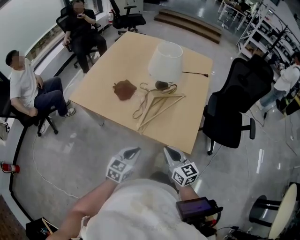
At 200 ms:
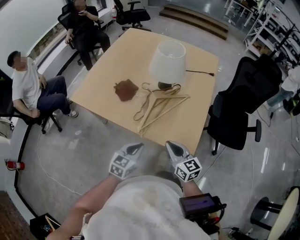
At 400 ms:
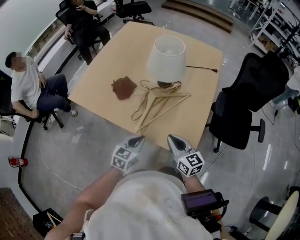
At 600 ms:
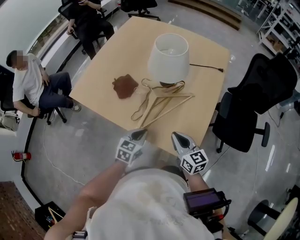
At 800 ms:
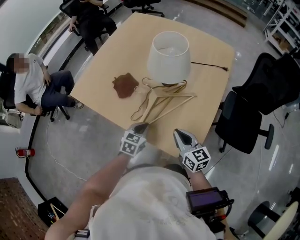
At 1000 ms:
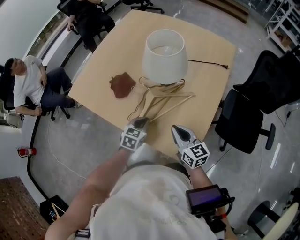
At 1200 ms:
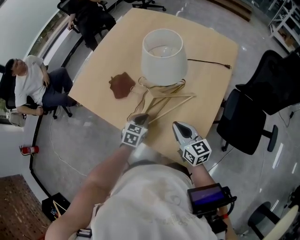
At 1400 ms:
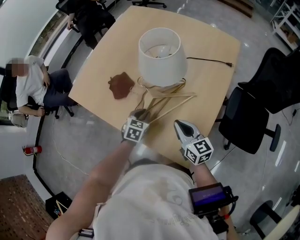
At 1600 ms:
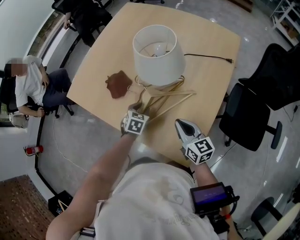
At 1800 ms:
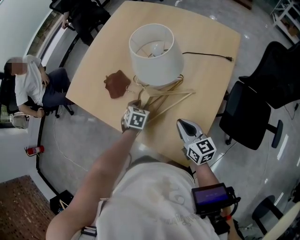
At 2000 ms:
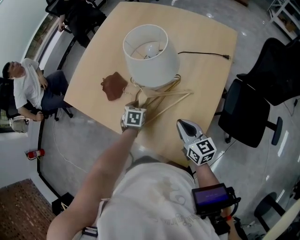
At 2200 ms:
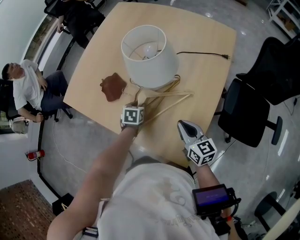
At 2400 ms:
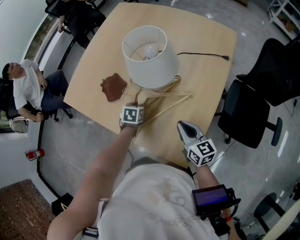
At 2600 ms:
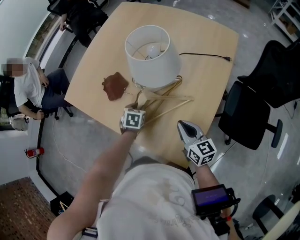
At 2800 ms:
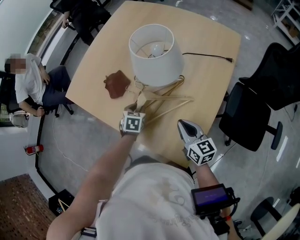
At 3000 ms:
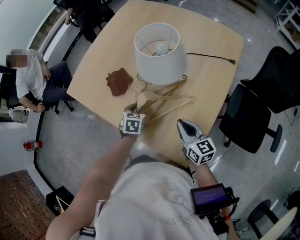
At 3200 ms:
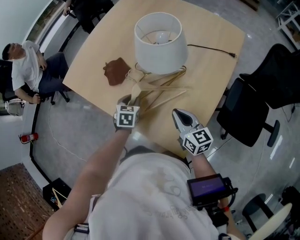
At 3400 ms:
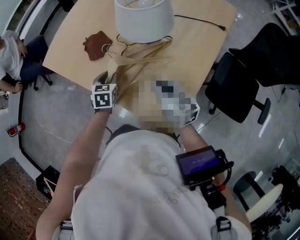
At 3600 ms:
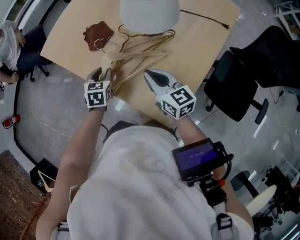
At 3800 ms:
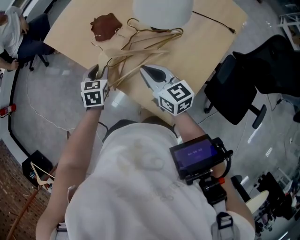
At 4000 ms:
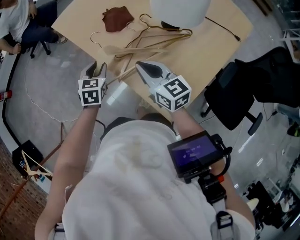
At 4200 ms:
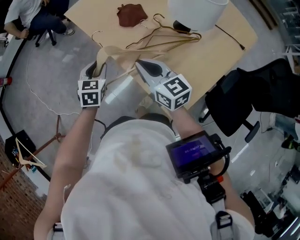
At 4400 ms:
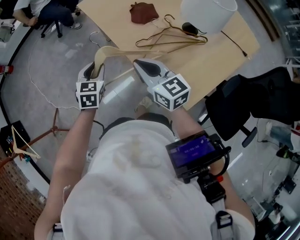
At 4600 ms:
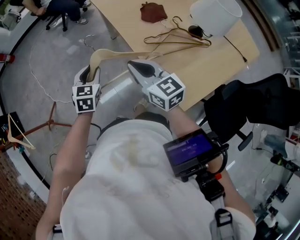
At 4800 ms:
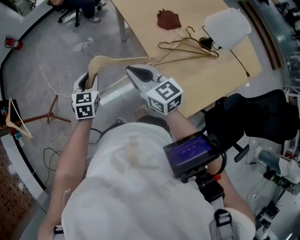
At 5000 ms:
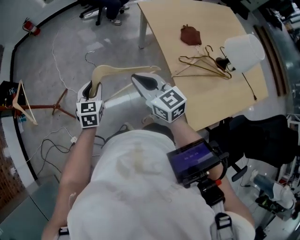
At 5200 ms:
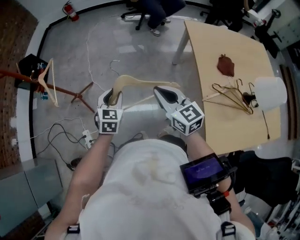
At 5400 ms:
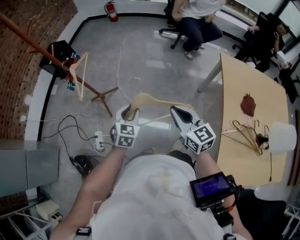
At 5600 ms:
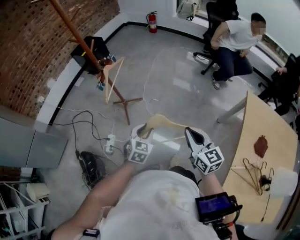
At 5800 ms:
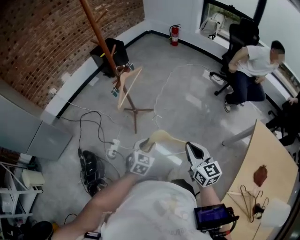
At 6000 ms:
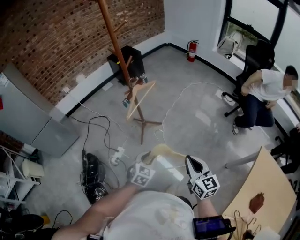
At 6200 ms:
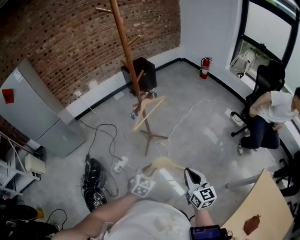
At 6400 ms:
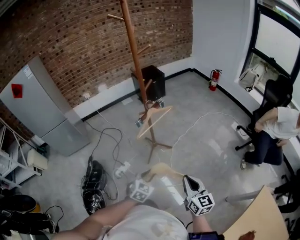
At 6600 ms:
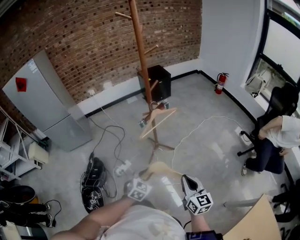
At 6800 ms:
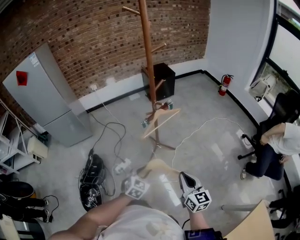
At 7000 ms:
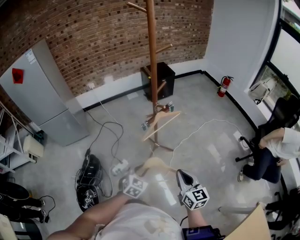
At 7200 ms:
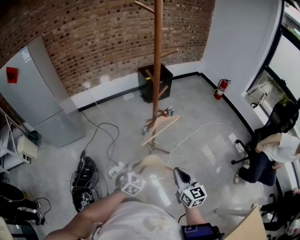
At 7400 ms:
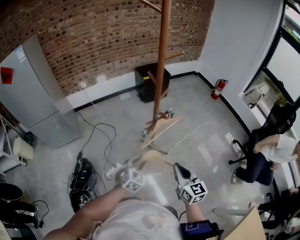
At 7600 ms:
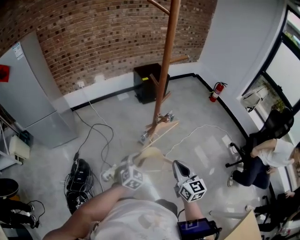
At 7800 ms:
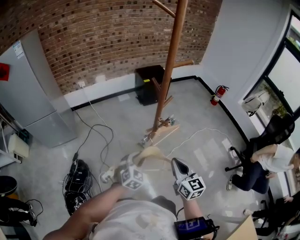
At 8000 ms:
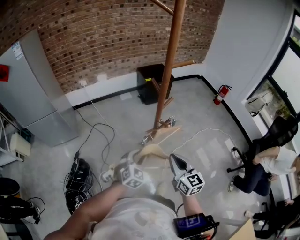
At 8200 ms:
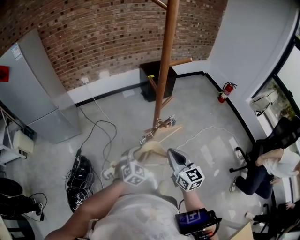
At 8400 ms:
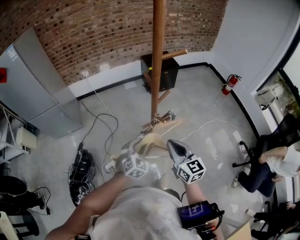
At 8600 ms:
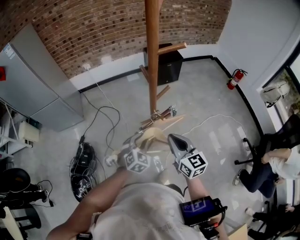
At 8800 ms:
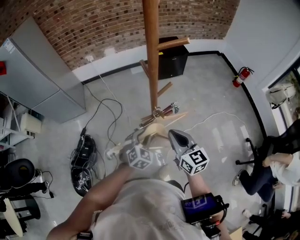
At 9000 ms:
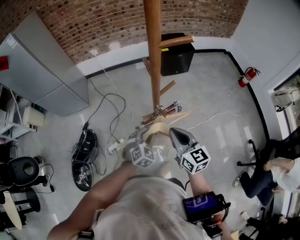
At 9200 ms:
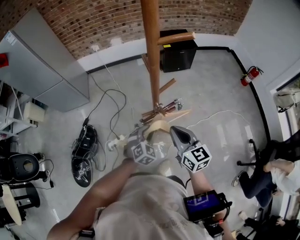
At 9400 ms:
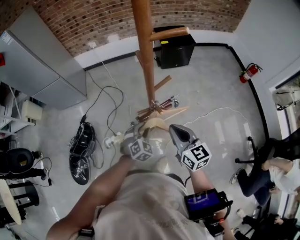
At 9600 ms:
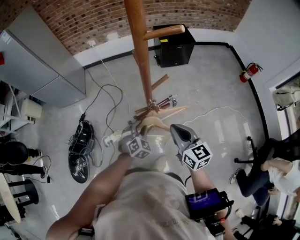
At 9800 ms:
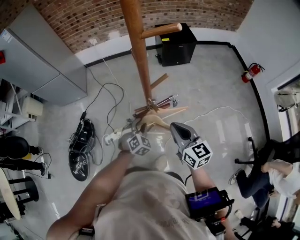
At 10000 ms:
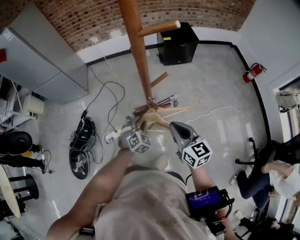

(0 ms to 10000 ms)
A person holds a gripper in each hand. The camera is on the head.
0 ms - 1400 ms: The left gripper shifts roughly 25 cm forward, and swivels some 30 degrees. Meanwhile the right gripper moves forward and to the right, roughly 25 cm.
2800 ms - 4200 ms: The right gripper shifts by some 25 cm, and swivels some 30 degrees. Meanwhile the left gripper changes place by some 25 cm, and swivels approximately 20 degrees.
4200 ms - 5800 ms: The two grippers travel together, about 50 cm. The right gripper changes its angle by roughly 60 degrees, while the left gripper rotates approximately 60 degrees.
5800 ms - 7200 ms: The left gripper ends up roughly 20 cm from where it was, and changes its angle by about 20 degrees; the right gripper ends up approximately 25 cm from where it was, and changes its angle by about 30 degrees.
7200 ms - 8600 ms: The two grippers go some 25 cm forward.
8600 ms - 10000 ms: The right gripper moves to the right, about 5 cm. Meanwhile the left gripper is displaced downward by about 10 cm.

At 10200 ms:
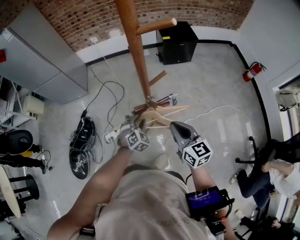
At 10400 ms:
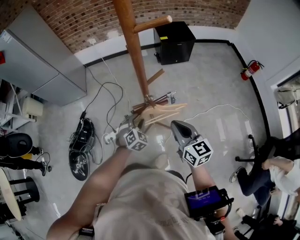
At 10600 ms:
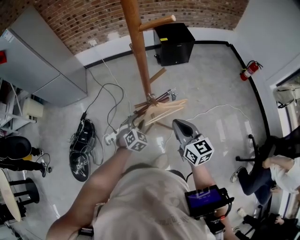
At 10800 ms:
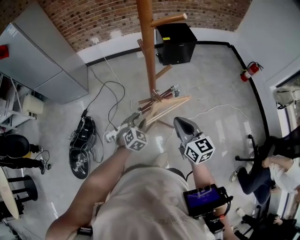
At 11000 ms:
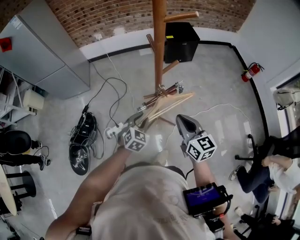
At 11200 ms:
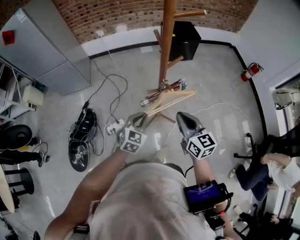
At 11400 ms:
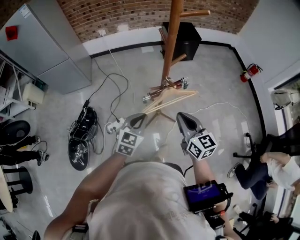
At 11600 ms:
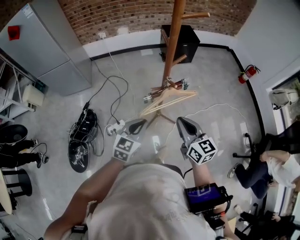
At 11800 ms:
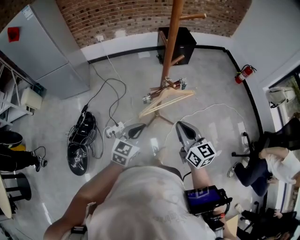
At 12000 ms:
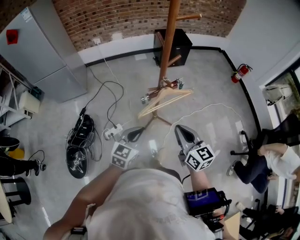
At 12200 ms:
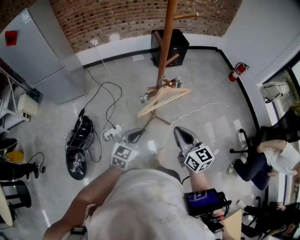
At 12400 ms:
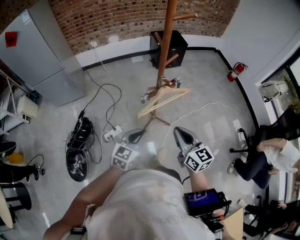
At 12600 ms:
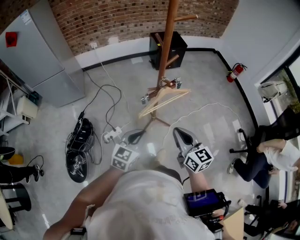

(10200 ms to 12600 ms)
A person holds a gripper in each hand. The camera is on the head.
10200 ms - 11400 ms: The left gripper heads upward, backward and to the left, covering about 20 cm, swivels about 40 degrees, and closes. Meanwhile the right gripper is displaced to the left and backward by some 10 cm.
11400 ms - 12600 ms: Both grippers travel together backward, roughly 10 cm.

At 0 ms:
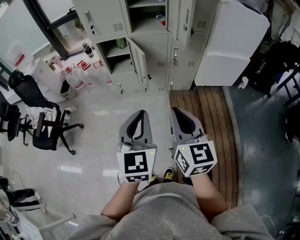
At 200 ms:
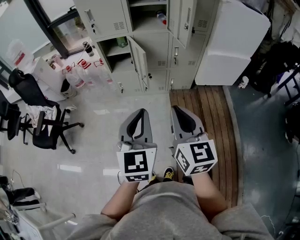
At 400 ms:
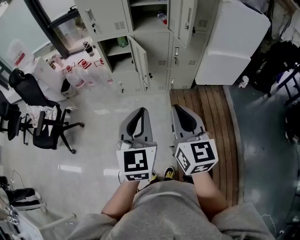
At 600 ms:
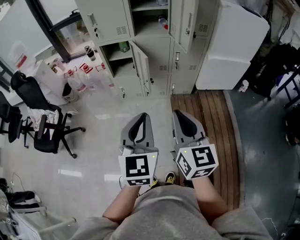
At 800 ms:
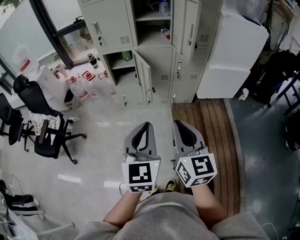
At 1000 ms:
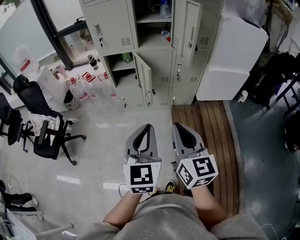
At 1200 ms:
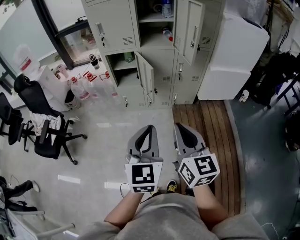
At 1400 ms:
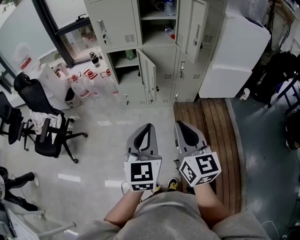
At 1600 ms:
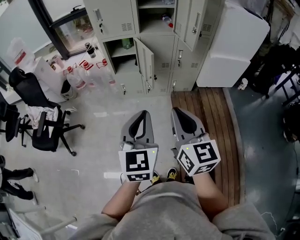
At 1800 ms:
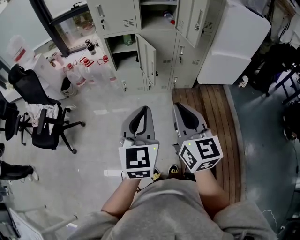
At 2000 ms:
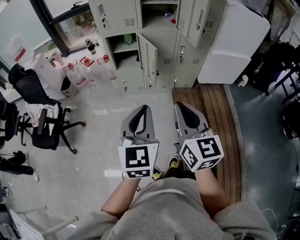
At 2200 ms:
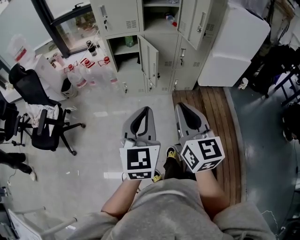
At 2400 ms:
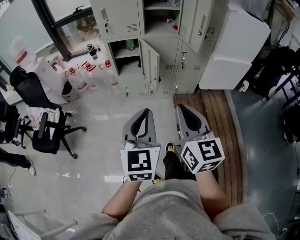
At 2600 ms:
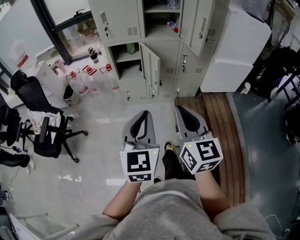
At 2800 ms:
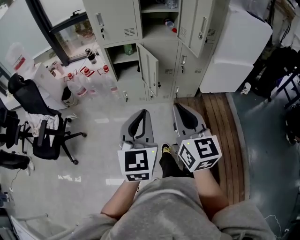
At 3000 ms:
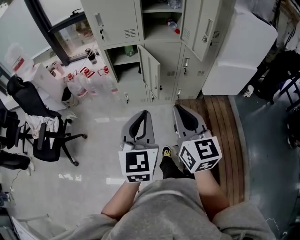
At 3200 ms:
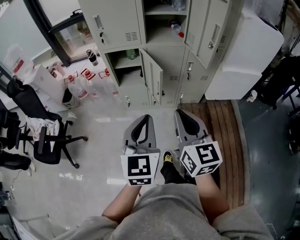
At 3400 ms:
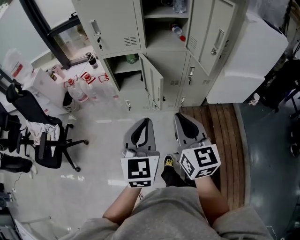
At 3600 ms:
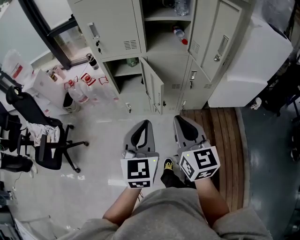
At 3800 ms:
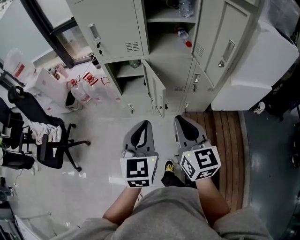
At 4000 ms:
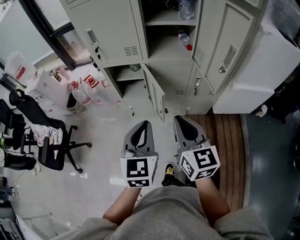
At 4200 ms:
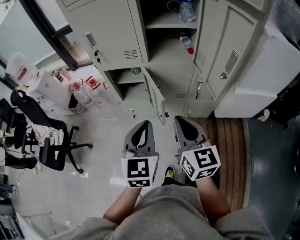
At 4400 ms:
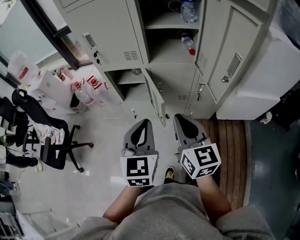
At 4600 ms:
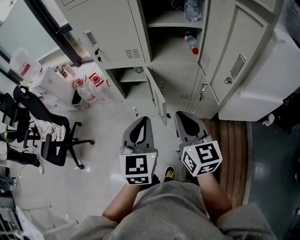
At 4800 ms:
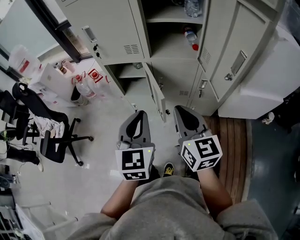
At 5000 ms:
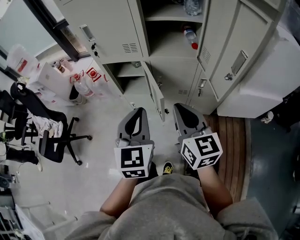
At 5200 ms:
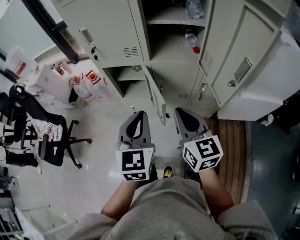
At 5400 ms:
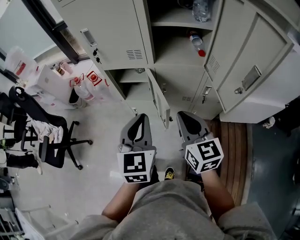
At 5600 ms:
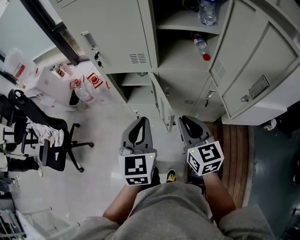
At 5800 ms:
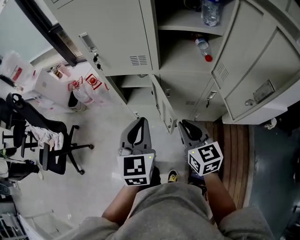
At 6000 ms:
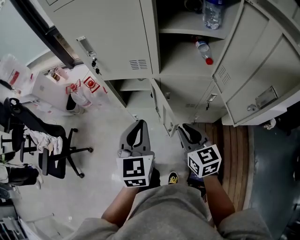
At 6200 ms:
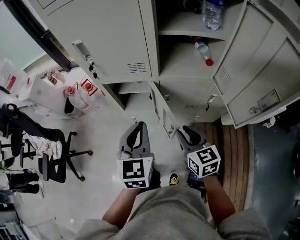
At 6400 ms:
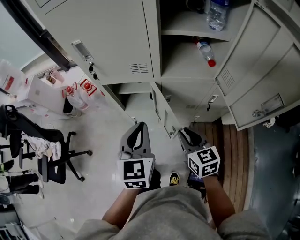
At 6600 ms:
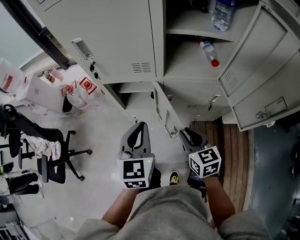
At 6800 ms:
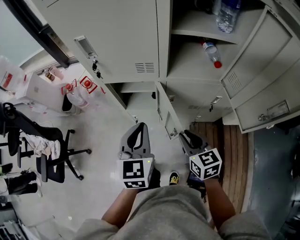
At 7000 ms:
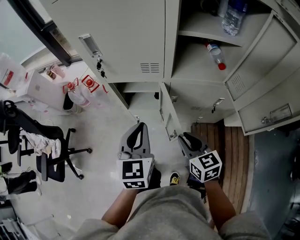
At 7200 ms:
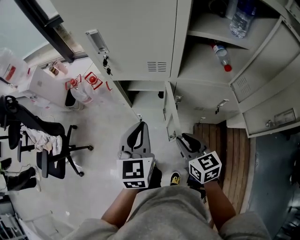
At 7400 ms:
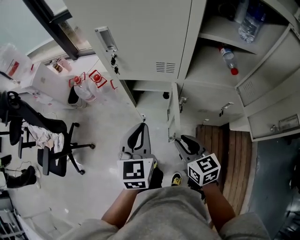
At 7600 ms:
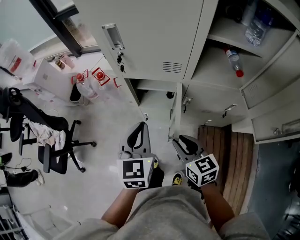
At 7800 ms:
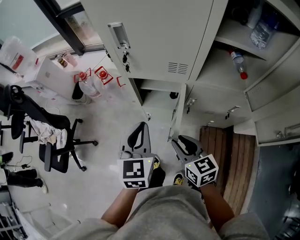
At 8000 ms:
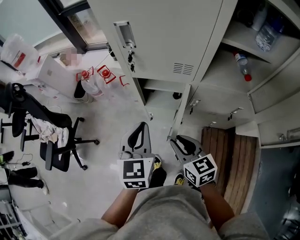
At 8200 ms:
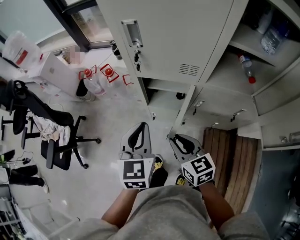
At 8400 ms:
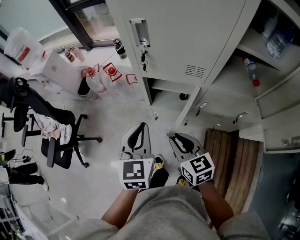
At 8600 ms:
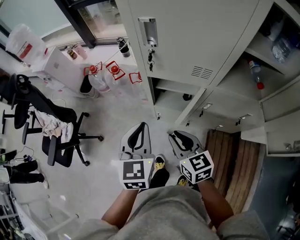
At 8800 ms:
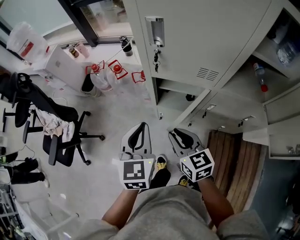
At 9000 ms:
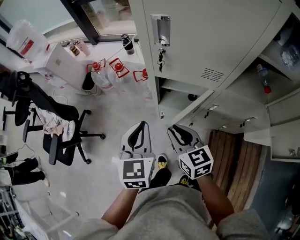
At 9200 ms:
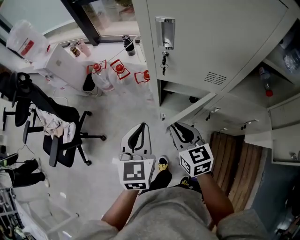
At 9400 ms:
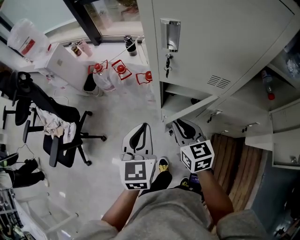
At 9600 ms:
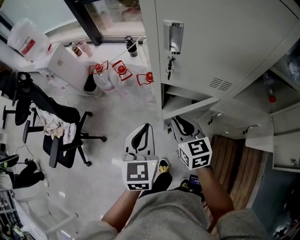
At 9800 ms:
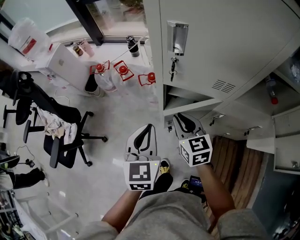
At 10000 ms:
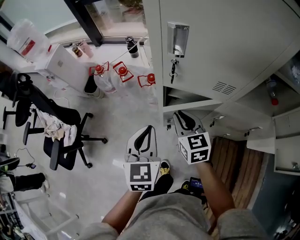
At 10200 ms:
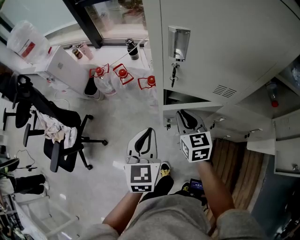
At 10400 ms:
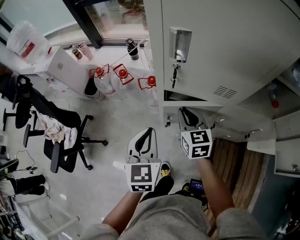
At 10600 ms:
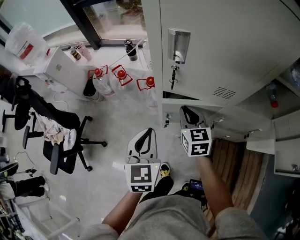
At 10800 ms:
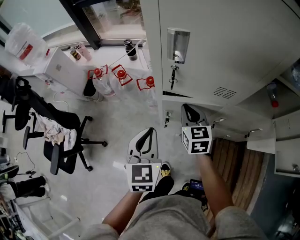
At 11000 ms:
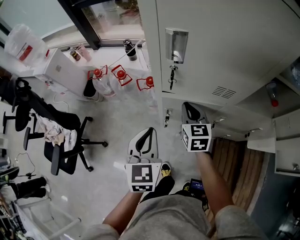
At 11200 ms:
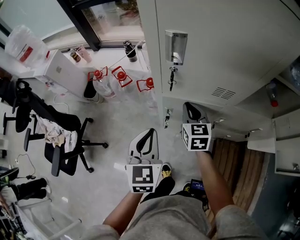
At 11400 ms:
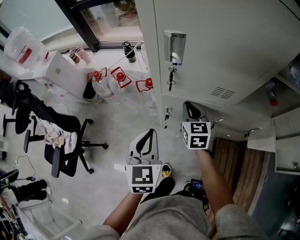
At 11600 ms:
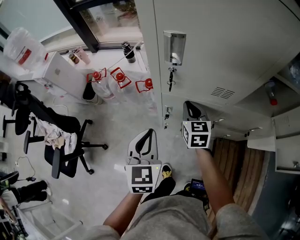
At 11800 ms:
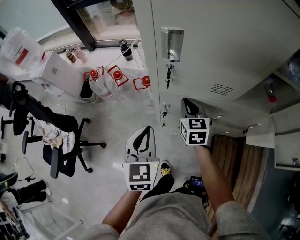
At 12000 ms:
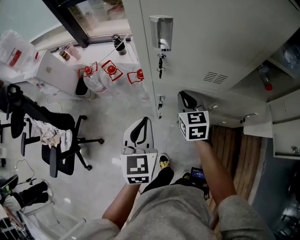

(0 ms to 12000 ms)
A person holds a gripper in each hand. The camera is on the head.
0 ms - 1600 ms: Both grippers travel together to the left, some 5 cm.
1600 ms - 3000 ms: Both grippers travel together forward, approximately 10 cm.
3000 ms - 4400 ms: Both grippers move forward, roughly 25 cm.
4400 ms - 6000 ms: The right gripper is displaced forward and downward by about 15 cm. The left gripper is displaced forward and to the left by approximately 15 cm.
6000 ms - 7600 ms: The right gripper shifts about 10 cm to the left. The left gripper shifts approximately 10 cm to the left and forward.
7600 ms - 9000 ms: The right gripper is displaced to the left and forward by about 15 cm. Meanwhile the left gripper shifts roughly 10 cm to the left.
9000 ms - 10400 ms: The left gripper shifts by approximately 5 cm. Meanwhile the right gripper goes approximately 15 cm forward.
10400 ms - 12000 ms: The grippers make only small movements.
